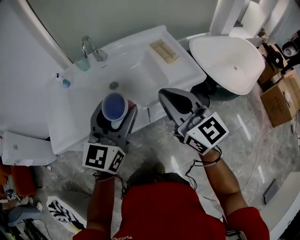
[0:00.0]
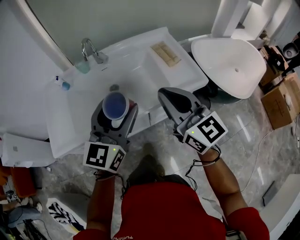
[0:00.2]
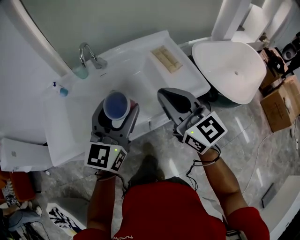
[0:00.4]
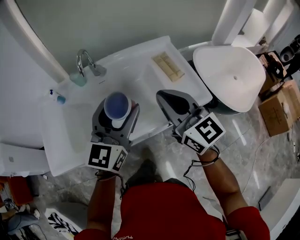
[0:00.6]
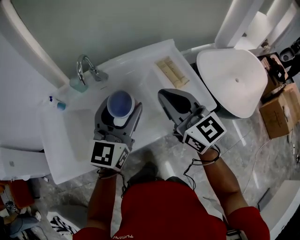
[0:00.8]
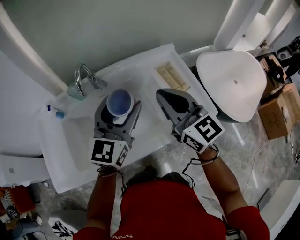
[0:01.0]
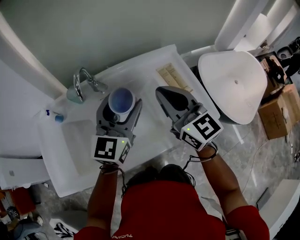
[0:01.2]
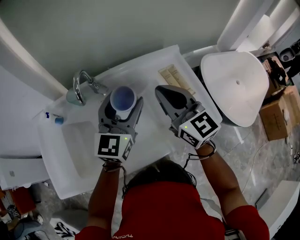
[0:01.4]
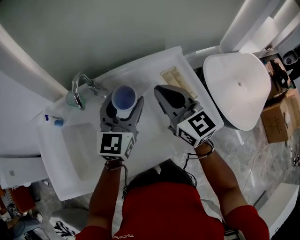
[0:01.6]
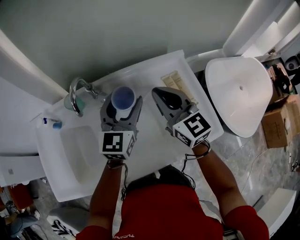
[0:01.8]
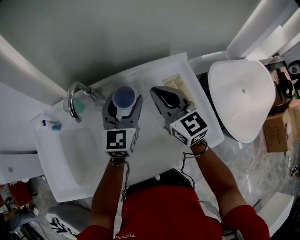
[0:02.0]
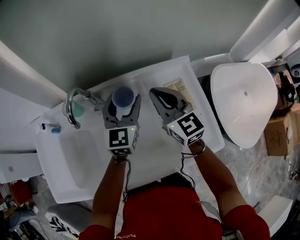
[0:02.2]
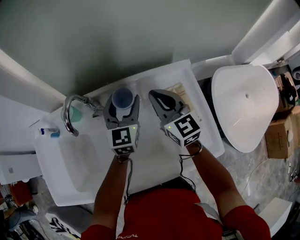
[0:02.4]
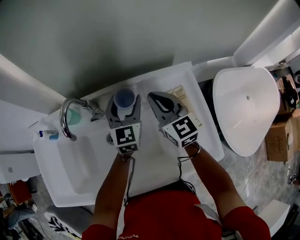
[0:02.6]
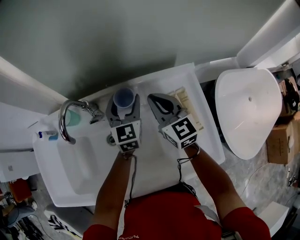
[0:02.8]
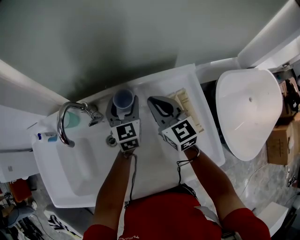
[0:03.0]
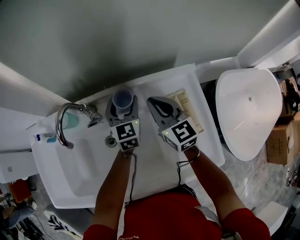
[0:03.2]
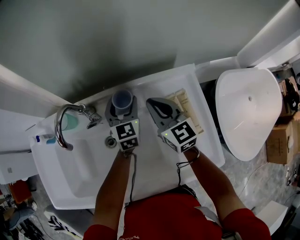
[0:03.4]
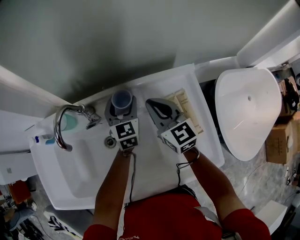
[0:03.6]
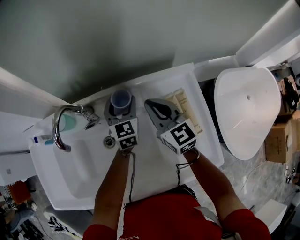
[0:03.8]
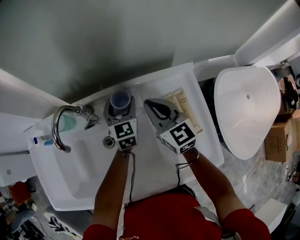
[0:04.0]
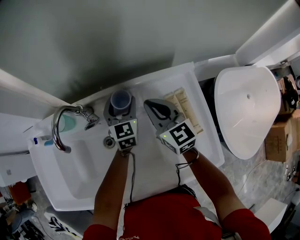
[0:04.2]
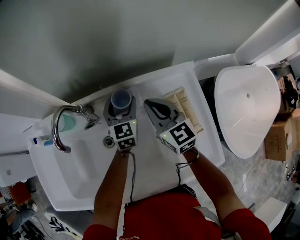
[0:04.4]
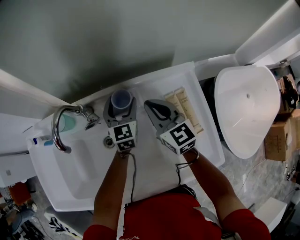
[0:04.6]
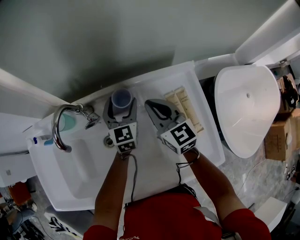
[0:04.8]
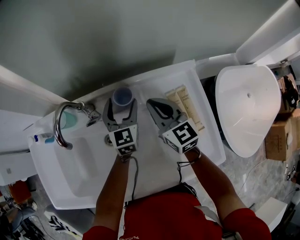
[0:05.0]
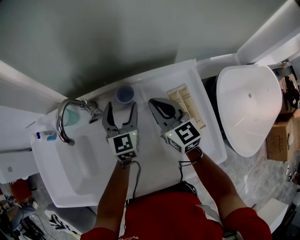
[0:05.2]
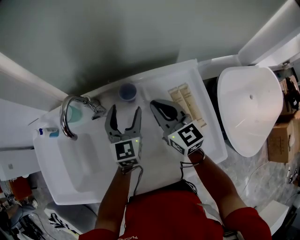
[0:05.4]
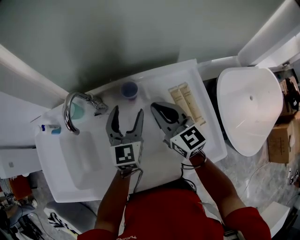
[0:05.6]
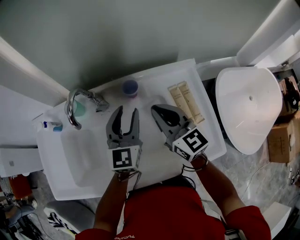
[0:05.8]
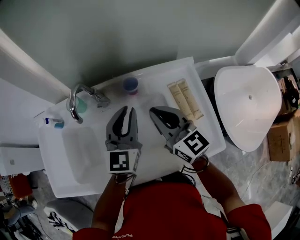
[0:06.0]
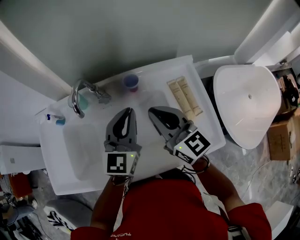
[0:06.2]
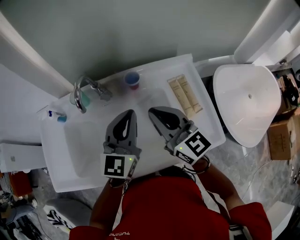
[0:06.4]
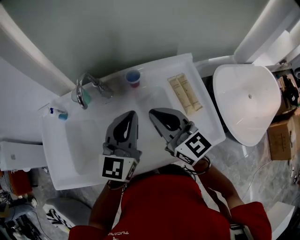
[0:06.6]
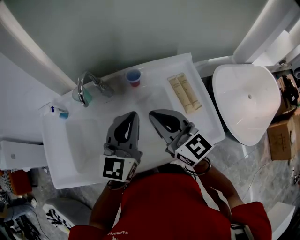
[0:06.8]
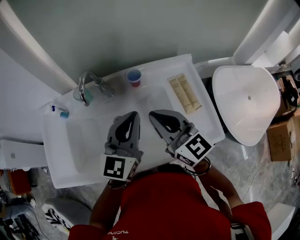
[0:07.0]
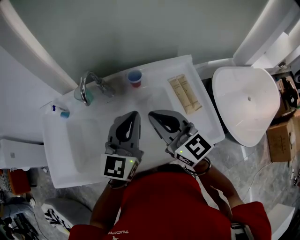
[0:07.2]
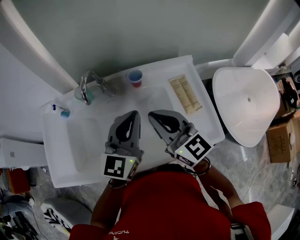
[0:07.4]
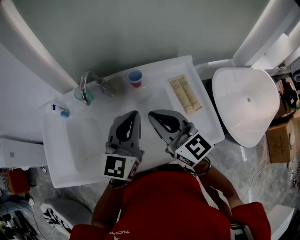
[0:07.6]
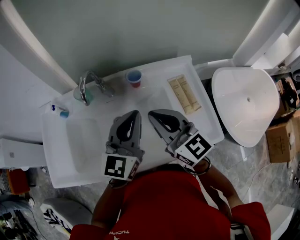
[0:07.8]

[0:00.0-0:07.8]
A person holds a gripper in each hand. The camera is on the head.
0:00.0 to 0:01.6: The two grippers go approximately 30 cm forward.
0:01.6 to 0:03.2: The two grippers go about 20 cm forward and downward. The left gripper swivels approximately 30 degrees.
0:03.2 to 0:04.6: There are only small adjustments of the grippers.
0:04.6 to 0:06.2: The right gripper shifts some 15 cm backward, upward and to the left. The left gripper is displaced backward and upward by approximately 25 cm, changes its angle by about 20 degrees, and closes up.
0:06.2 to 0:07.8: Both grippers move backward, approximately 5 cm.

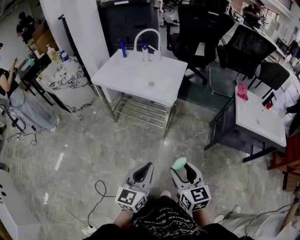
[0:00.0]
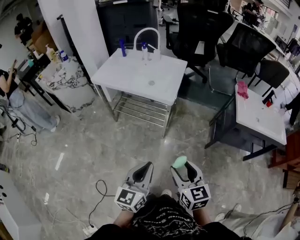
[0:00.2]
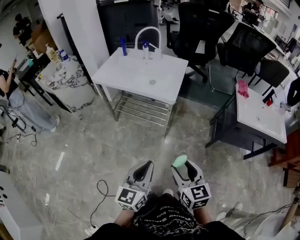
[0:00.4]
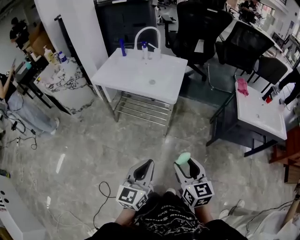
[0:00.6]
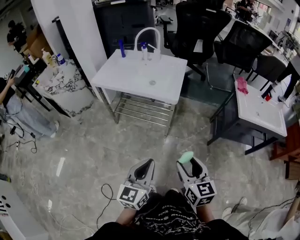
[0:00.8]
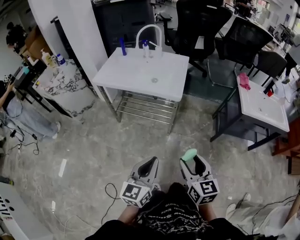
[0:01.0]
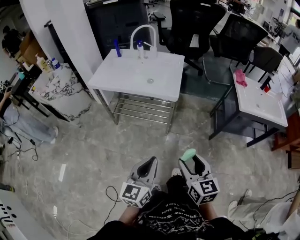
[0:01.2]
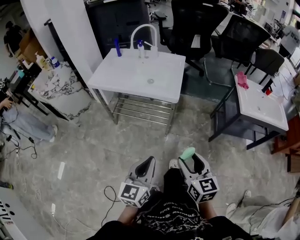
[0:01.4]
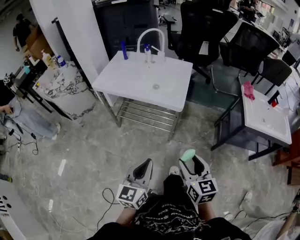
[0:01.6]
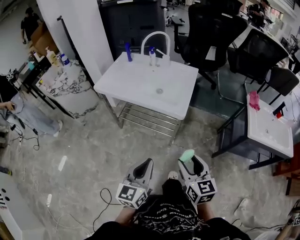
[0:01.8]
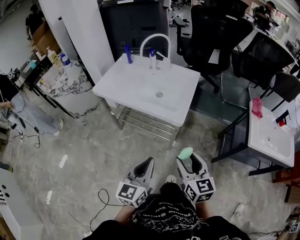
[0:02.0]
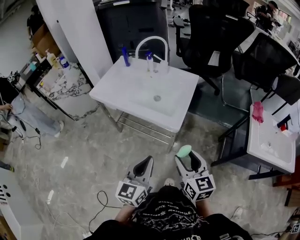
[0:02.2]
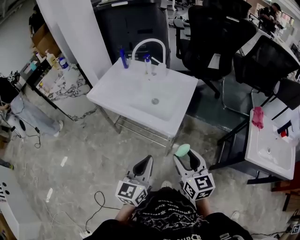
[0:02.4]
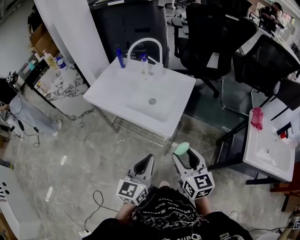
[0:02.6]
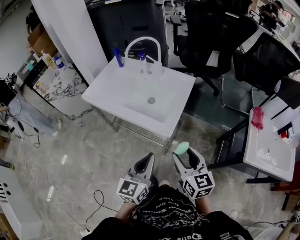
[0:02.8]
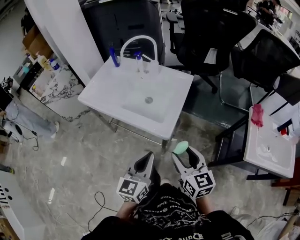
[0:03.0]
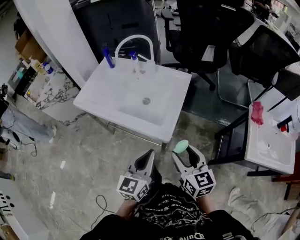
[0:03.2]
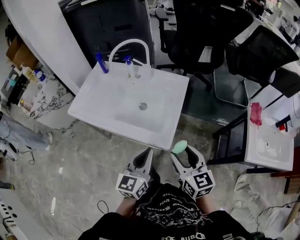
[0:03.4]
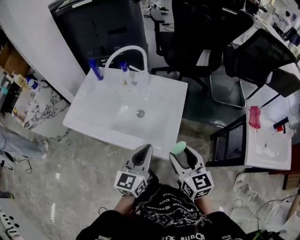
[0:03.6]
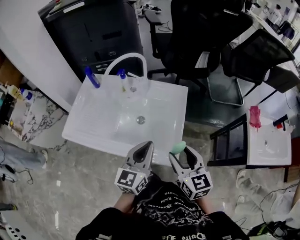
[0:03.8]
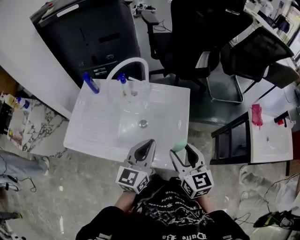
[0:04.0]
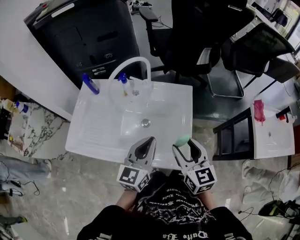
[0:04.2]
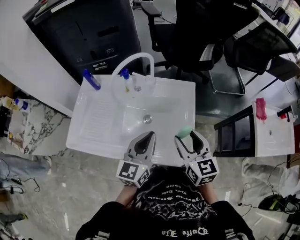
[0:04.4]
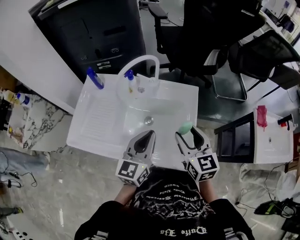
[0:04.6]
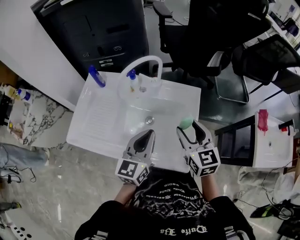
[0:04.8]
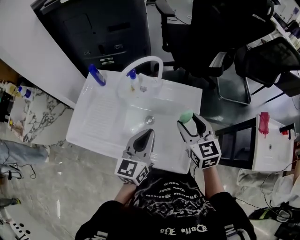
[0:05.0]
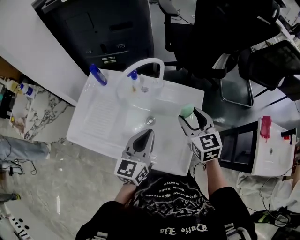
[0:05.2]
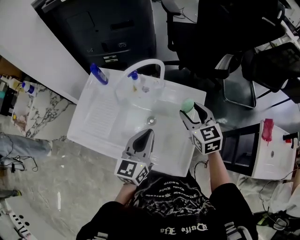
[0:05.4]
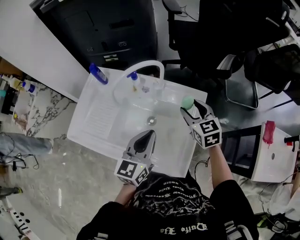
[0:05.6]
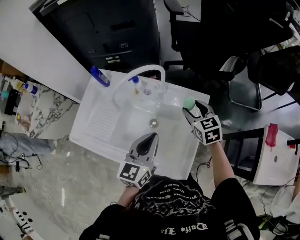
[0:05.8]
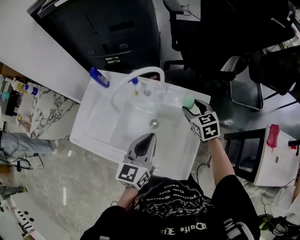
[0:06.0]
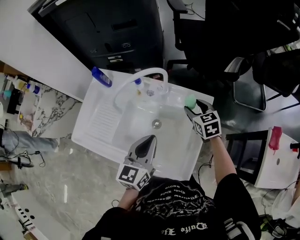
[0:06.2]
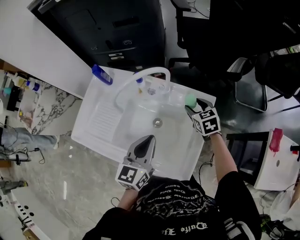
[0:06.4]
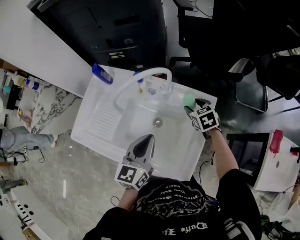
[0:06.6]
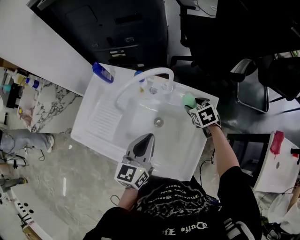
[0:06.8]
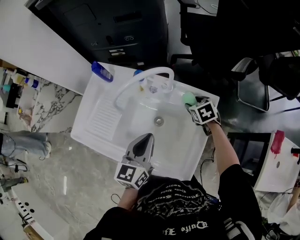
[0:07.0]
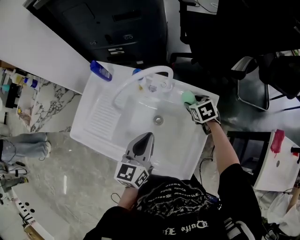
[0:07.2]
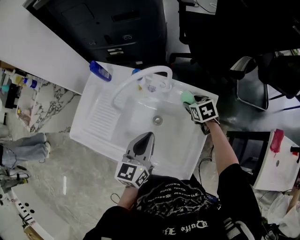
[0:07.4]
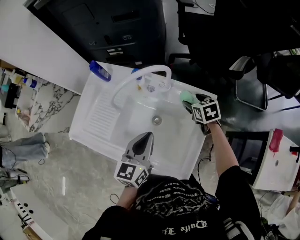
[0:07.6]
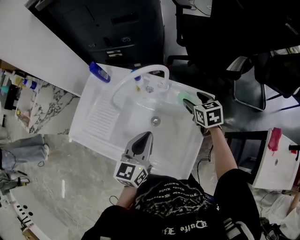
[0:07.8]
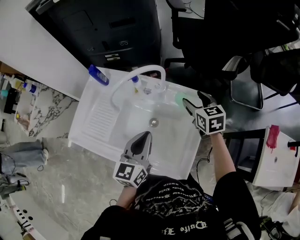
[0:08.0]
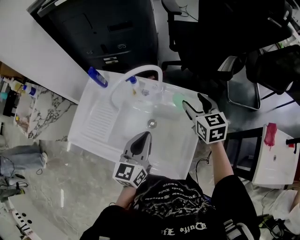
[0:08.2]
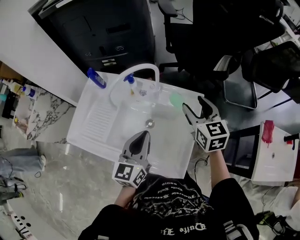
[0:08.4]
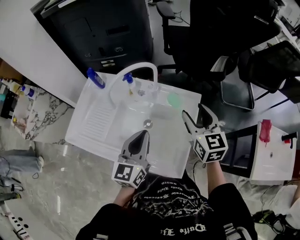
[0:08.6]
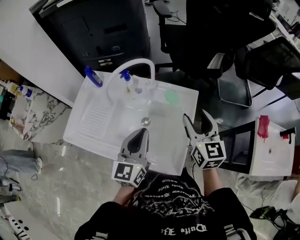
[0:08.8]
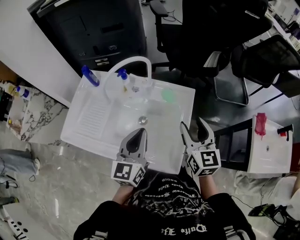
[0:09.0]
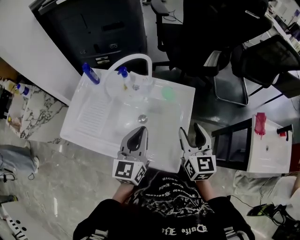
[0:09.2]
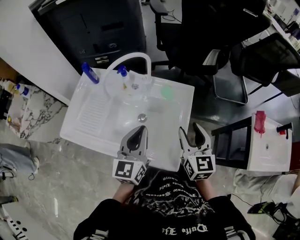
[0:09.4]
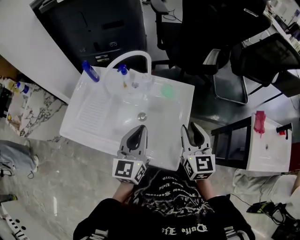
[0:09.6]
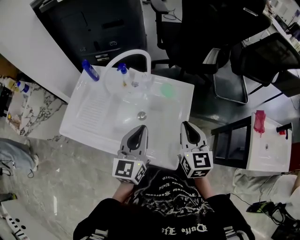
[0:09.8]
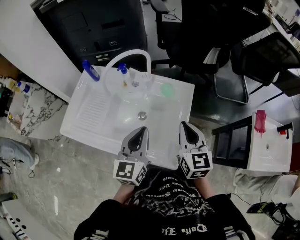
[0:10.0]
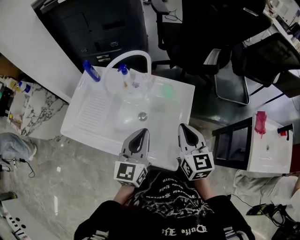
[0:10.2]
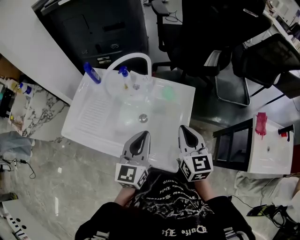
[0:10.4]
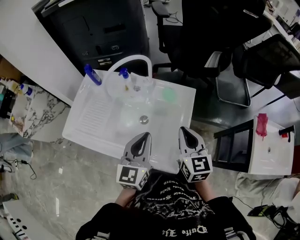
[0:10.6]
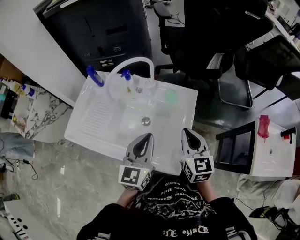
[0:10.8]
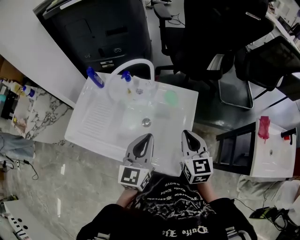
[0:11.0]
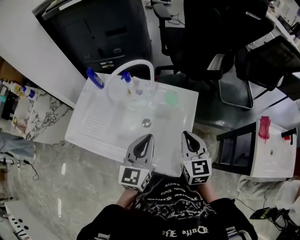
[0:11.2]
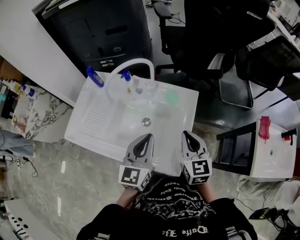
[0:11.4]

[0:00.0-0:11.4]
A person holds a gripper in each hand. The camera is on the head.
0:00.0 to 0:01.4: The left gripper goes roughly 10 cm to the left; the right gripper is displaced to the left by approximately 5 cm.
0:01.4 to 0:02.8: Both grippers travel together forward and to the right, about 30 cm.
0:02.8 to 0:04.2: The right gripper moves forward and to the left, some 25 cm. The left gripper moves forward, approximately 30 cm.
0:04.2 to 0:05.6: The right gripper goes roughly 20 cm forward, and rotates approximately 20 degrees. The left gripper shifts some 5 cm forward.
0:05.6 to 0:07.2: The left gripper shifts by roughly 5 cm. The right gripper travels downward and forward by approximately 15 cm, and rotates some 30 degrees.
0:07.2 to 0:08.6: The right gripper moves upward and backward, some 25 cm, and angles its fingers upward, by roughly 40 degrees. The left gripper is displaced upward by about 5 cm.
0:08.6 to 0:10.0: The right gripper shifts some 10 cm backward, and closes its fingers.
0:10.0 to 0:11.4: There are only small adjustments of the grippers.

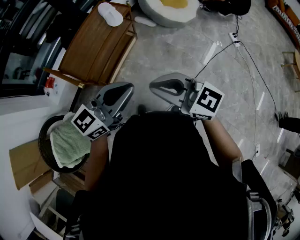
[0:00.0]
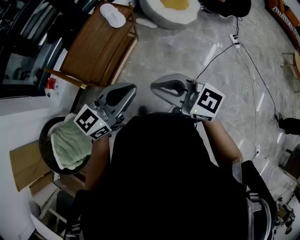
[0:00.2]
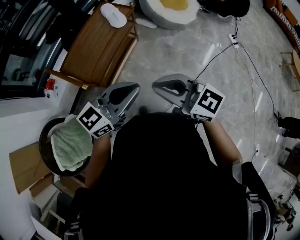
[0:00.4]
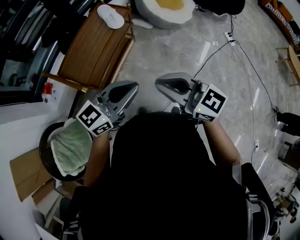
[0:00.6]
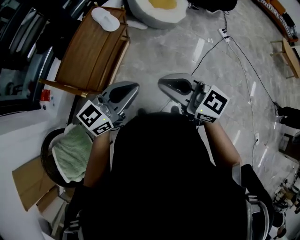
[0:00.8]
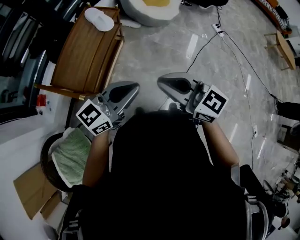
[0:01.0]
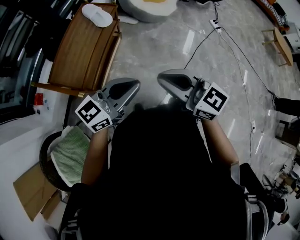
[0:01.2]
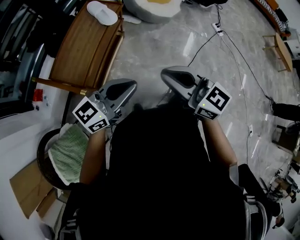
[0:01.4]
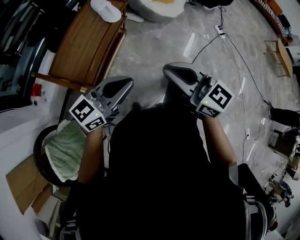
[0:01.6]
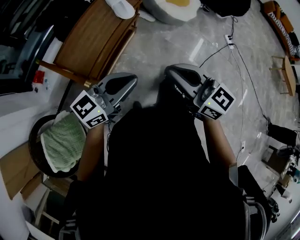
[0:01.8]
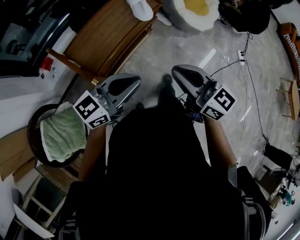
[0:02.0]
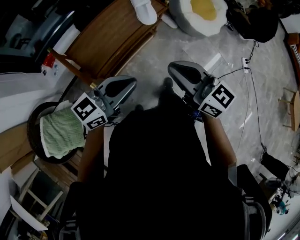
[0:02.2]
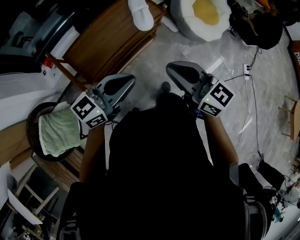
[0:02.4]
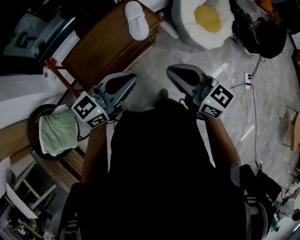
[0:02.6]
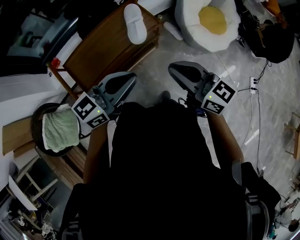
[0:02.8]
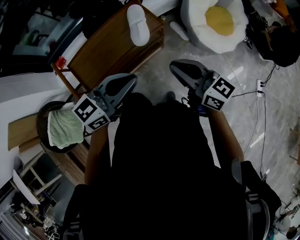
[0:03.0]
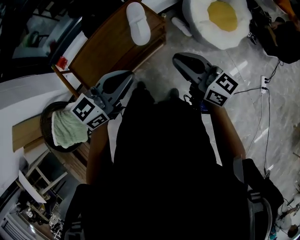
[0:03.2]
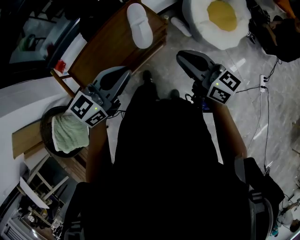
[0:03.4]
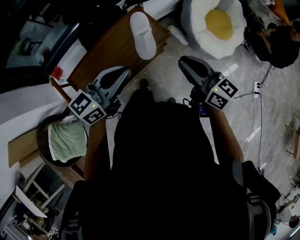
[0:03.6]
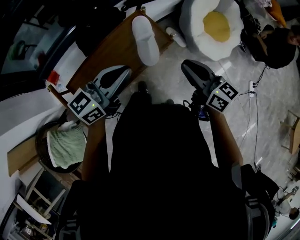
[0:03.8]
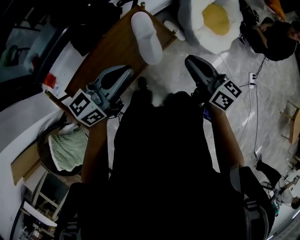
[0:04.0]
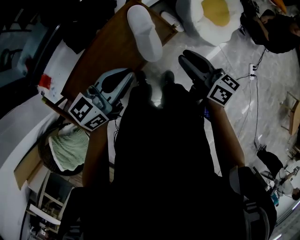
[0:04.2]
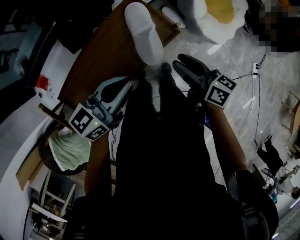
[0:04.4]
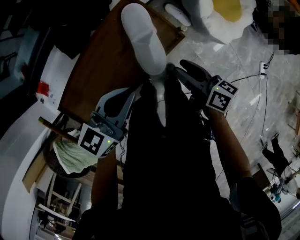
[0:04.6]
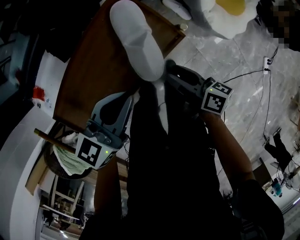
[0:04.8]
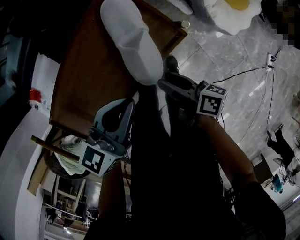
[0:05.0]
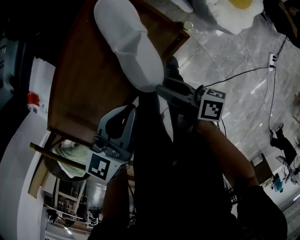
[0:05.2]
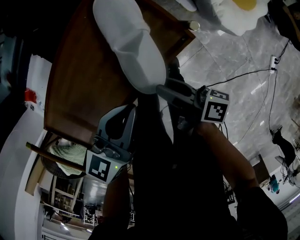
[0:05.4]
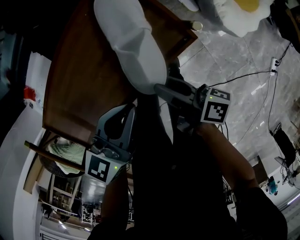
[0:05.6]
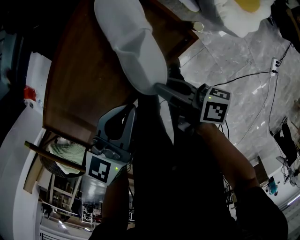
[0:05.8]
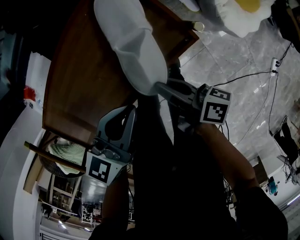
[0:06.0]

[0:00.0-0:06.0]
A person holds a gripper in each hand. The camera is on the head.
0:00.0 to 0:01.6: The right gripper travels forward and to the left by about 10 cm, and turns by about 20 degrees. The left gripper goes approximately 10 cm to the left.
0:01.6 to 0:03.0: The left gripper ends up some 25 cm from where it was, and swivels about 30 degrees, while the right gripper changes place by roughly 35 cm, and turns by approximately 30 degrees.
0:03.0 to 0:04.4: The right gripper goes roughly 25 cm forward, downward and to the left, turns by roughly 30 degrees, and opens up. Meanwhile the left gripper shifts about 25 cm forward, to the left and downward.
0:04.4 to 0:06.0: The grippers both shift downward by roughly 15 cm. The left gripper rotates approximately 20 degrees. The right gripper turns by approximately 30 degrees.
